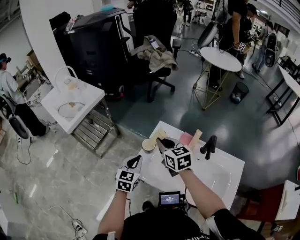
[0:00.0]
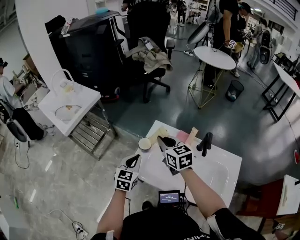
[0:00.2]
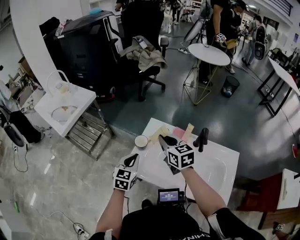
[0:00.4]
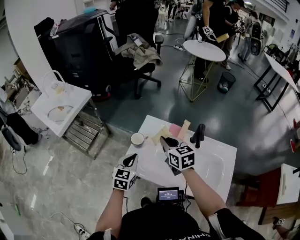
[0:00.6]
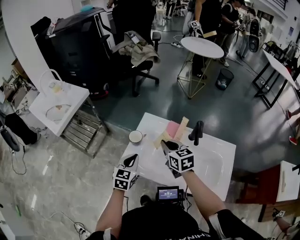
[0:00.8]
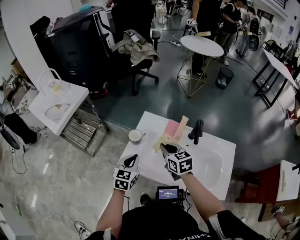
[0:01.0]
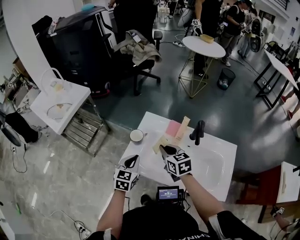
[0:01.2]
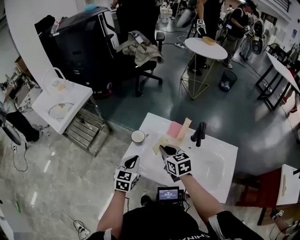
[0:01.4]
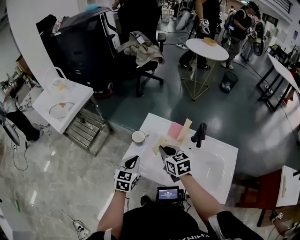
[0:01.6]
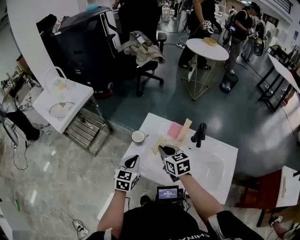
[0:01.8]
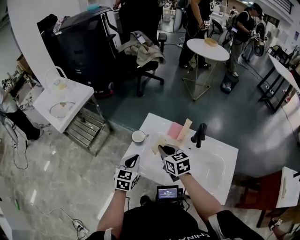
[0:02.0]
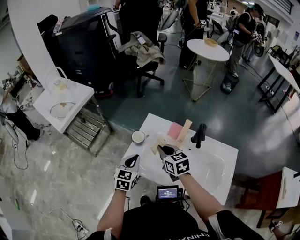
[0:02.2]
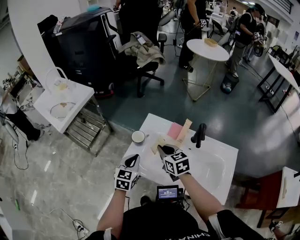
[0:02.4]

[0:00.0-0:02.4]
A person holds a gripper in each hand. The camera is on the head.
0:00.0 to 0:01.2: The left gripper moves approximately 5 cm. Meanwhile the right gripper moves backward, to the right and downward, some 10 cm.
0:01.2 to 0:02.4: The grippers stay close to where they were, moving slightly.

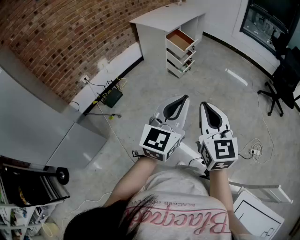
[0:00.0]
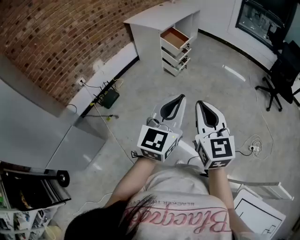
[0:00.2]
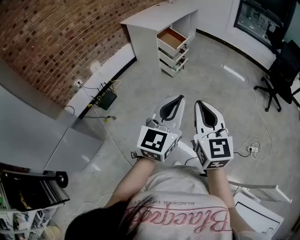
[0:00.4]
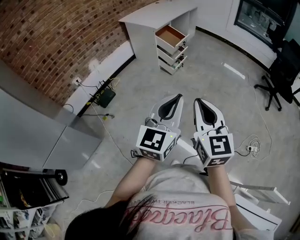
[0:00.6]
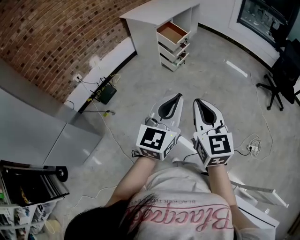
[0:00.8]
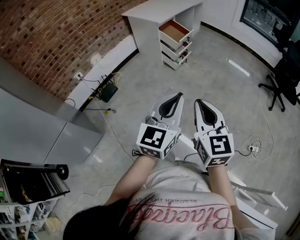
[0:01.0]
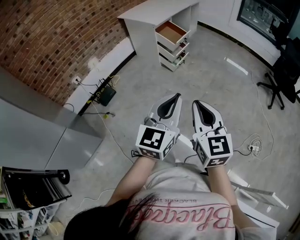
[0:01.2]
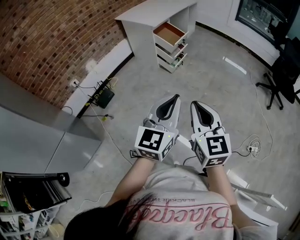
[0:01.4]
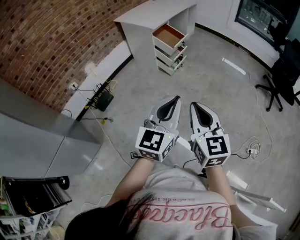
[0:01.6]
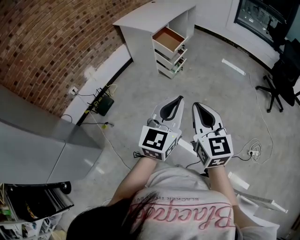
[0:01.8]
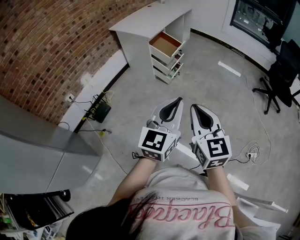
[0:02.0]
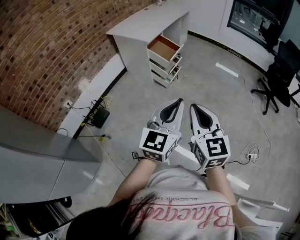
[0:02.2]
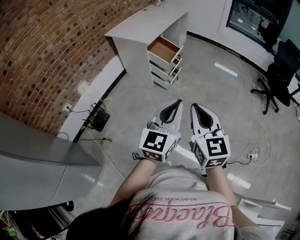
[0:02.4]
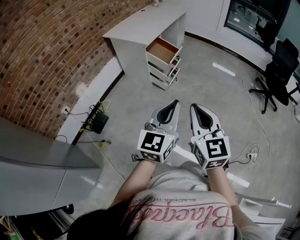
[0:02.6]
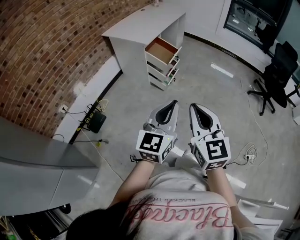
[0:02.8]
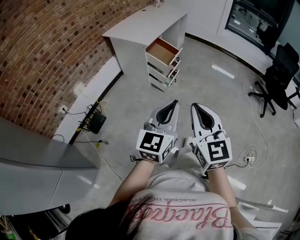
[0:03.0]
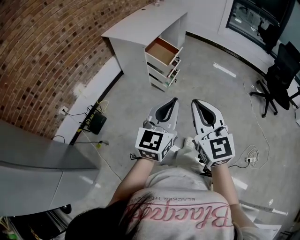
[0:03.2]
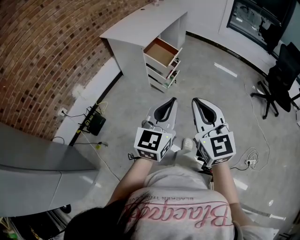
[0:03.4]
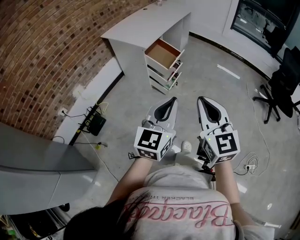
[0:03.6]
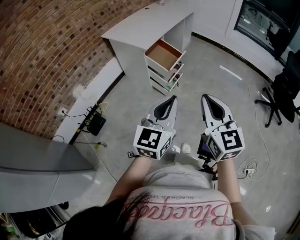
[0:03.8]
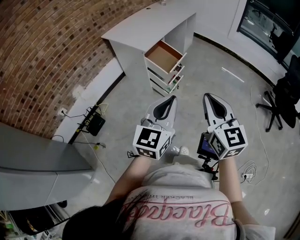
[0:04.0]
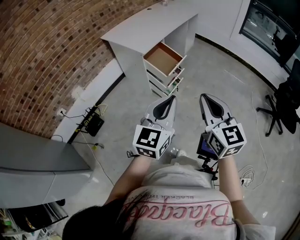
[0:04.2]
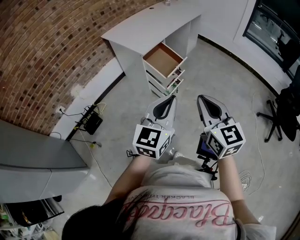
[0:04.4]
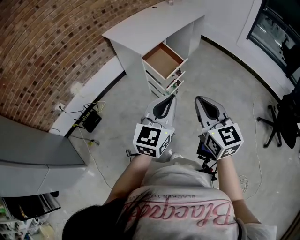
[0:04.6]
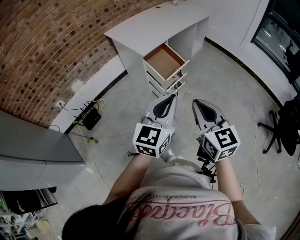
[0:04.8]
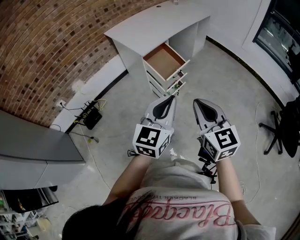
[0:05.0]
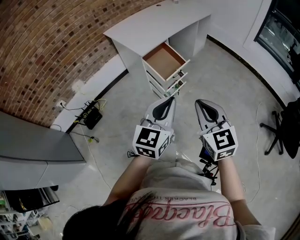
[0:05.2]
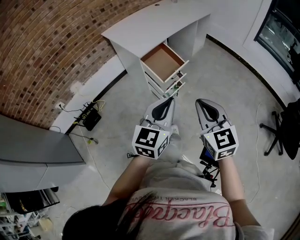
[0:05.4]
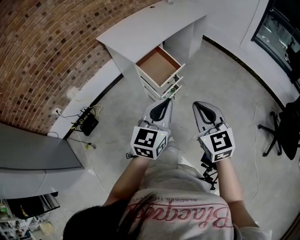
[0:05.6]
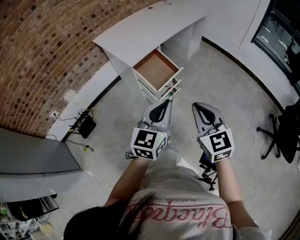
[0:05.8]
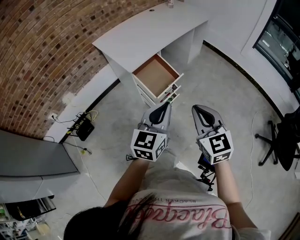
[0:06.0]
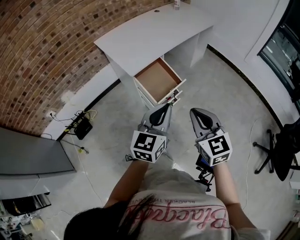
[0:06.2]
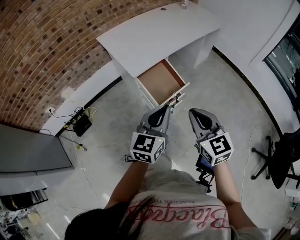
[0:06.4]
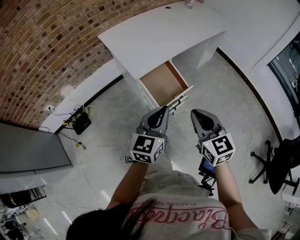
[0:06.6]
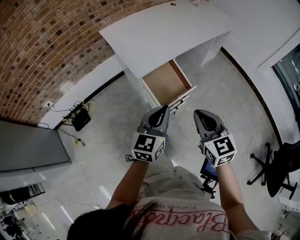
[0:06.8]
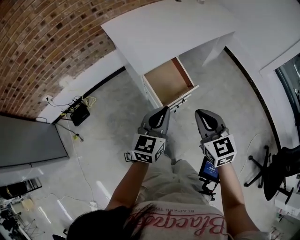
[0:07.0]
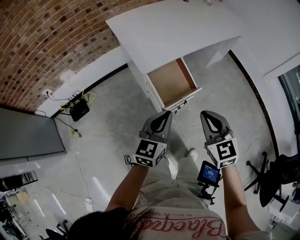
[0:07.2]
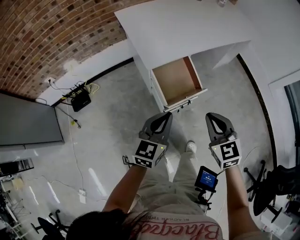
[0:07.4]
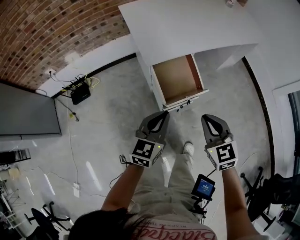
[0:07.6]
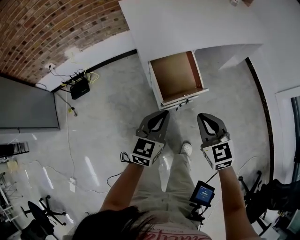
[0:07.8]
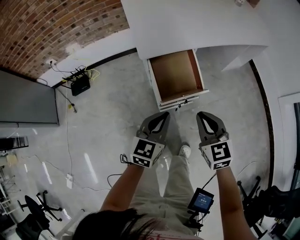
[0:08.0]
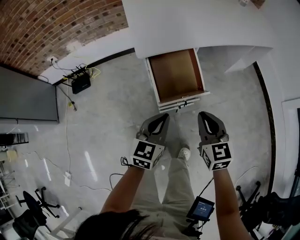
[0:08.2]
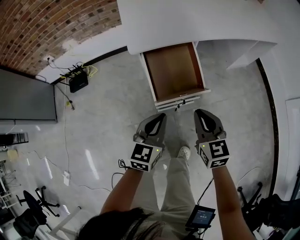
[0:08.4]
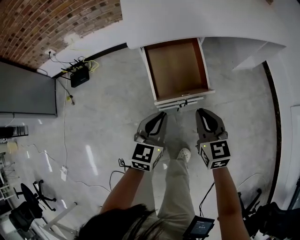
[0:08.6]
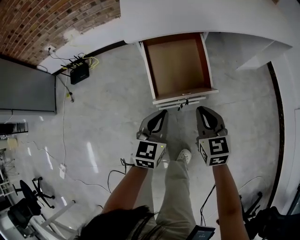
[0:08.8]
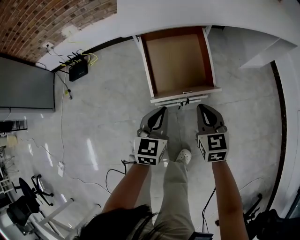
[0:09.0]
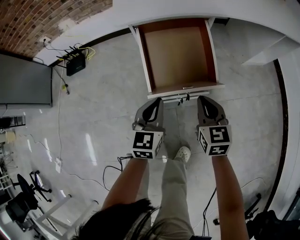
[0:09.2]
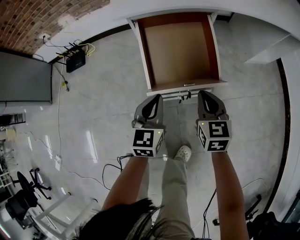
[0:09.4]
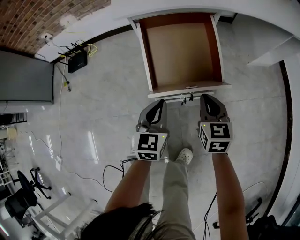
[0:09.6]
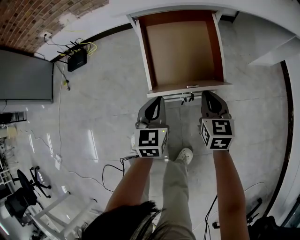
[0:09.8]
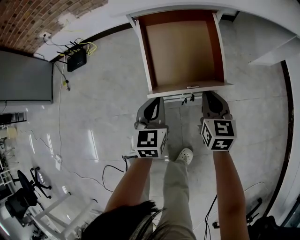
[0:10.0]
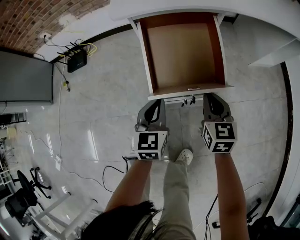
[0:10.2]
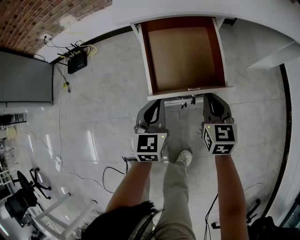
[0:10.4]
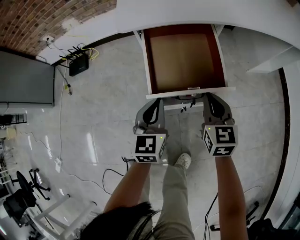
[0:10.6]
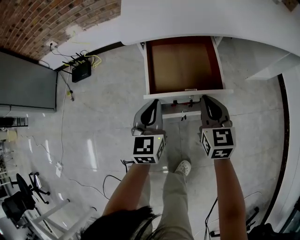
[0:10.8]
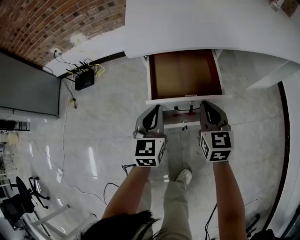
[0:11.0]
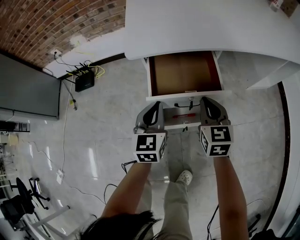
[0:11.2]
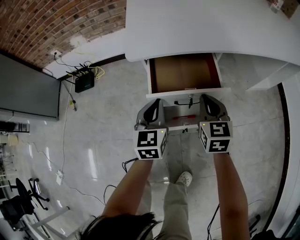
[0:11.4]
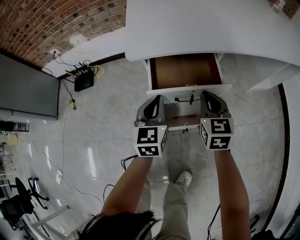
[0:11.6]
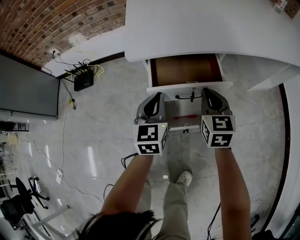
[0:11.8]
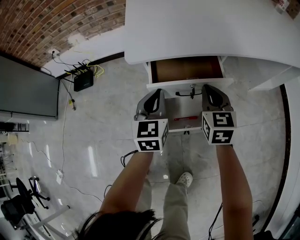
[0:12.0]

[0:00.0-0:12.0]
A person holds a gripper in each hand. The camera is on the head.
0:00.0 to 0:01.6: The two grippers go approximately 15 cm forward.
0:01.6 to 0:03.0: The two grippers go about 15 cm forward and to the left.
0:03.0 to 0:04.4: The two grippers go approximately 25 cm forward and to the right.
0:04.4 to 0:06.0: Both grippers travel together forward and to the right, roughly 25 cm.
0:06.0 to 0:07.6: The two grippers go roughly 25 cm forward and downward. The left gripper swivels some 20 degrees, while the right gripper turns by about 30 degrees.
0:07.6 to 0:09.0: The grippers both shift downward by roughly 25 cm. The left gripper swivels roughly 20 degrees.
0:09.0 to 0:10.4: The left gripper moves some 5 cm; the right gripper travels forward by roughly 5 cm.
0:10.4 to 0:12.0: The grippers both shift forward and upward by some 15 cm.

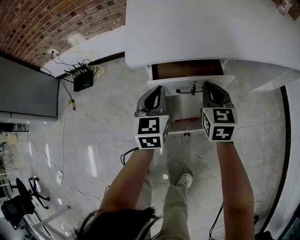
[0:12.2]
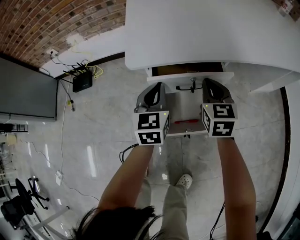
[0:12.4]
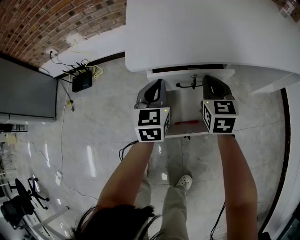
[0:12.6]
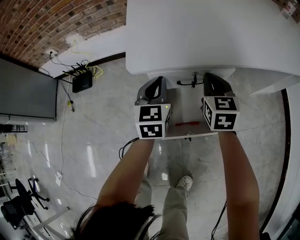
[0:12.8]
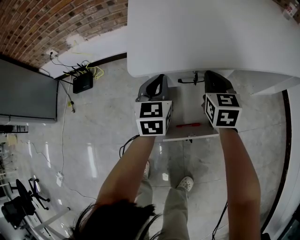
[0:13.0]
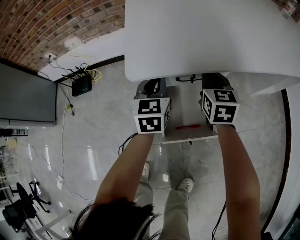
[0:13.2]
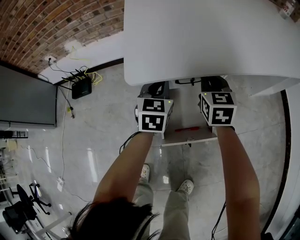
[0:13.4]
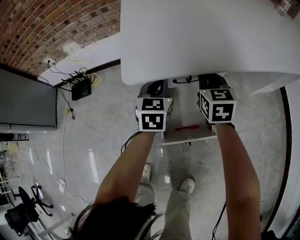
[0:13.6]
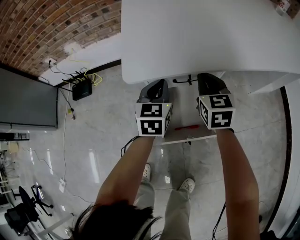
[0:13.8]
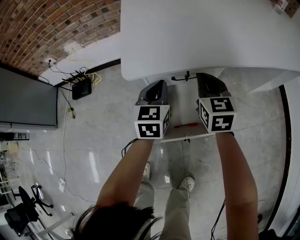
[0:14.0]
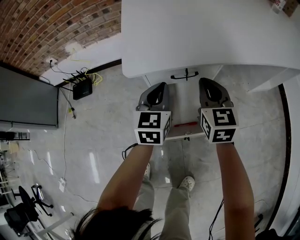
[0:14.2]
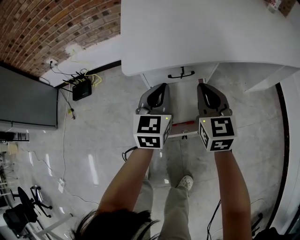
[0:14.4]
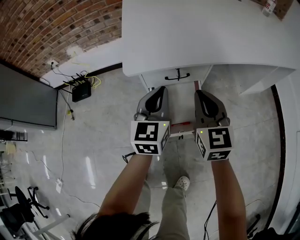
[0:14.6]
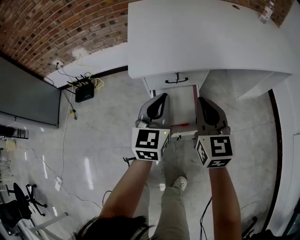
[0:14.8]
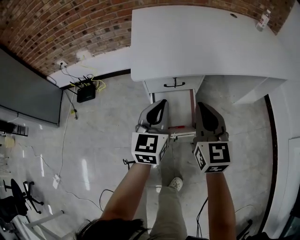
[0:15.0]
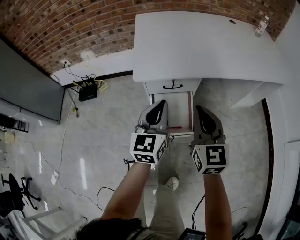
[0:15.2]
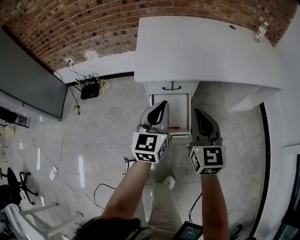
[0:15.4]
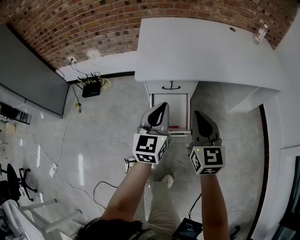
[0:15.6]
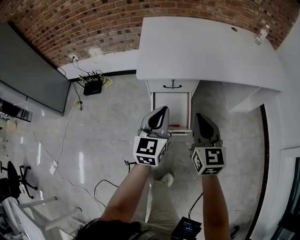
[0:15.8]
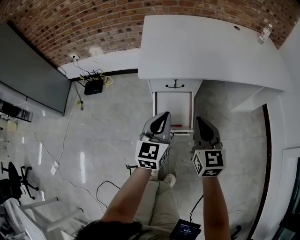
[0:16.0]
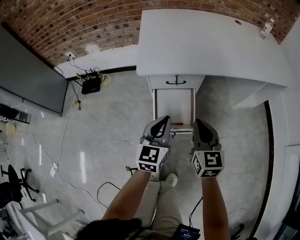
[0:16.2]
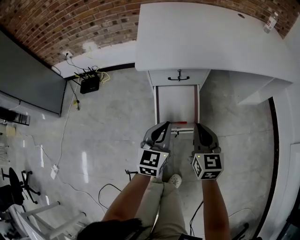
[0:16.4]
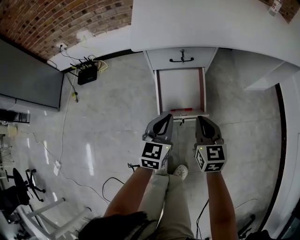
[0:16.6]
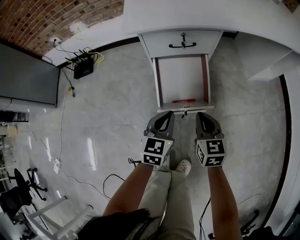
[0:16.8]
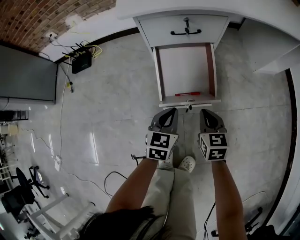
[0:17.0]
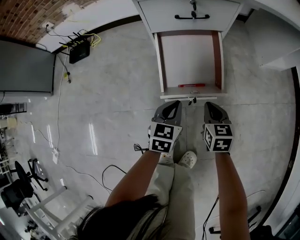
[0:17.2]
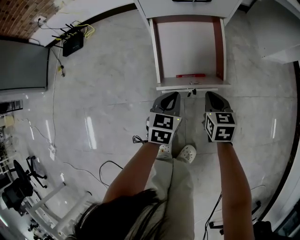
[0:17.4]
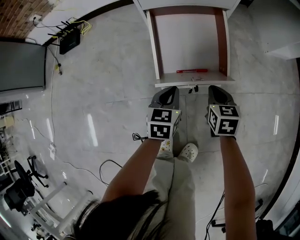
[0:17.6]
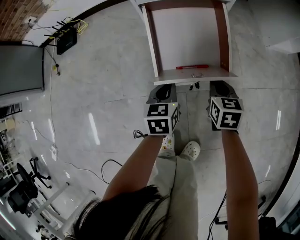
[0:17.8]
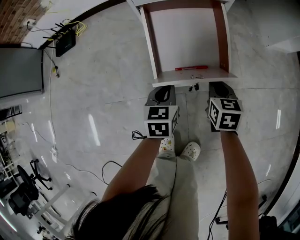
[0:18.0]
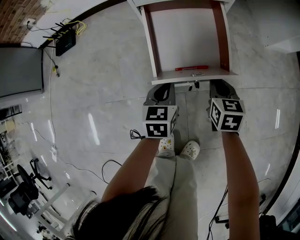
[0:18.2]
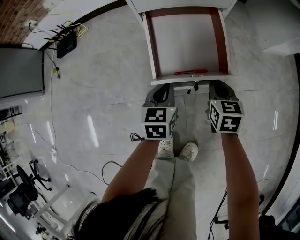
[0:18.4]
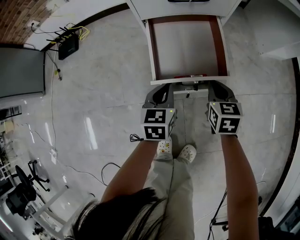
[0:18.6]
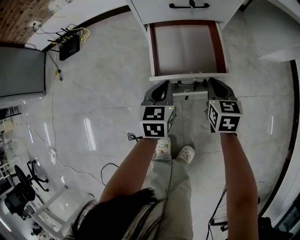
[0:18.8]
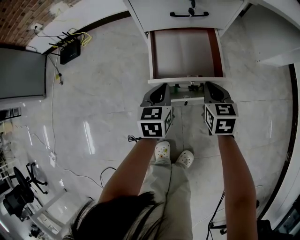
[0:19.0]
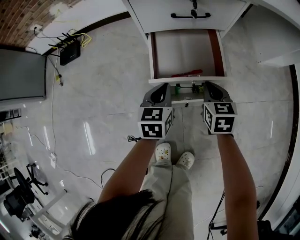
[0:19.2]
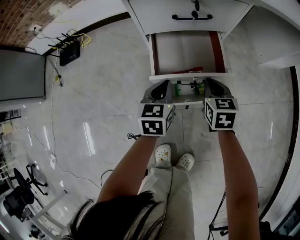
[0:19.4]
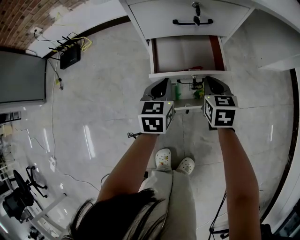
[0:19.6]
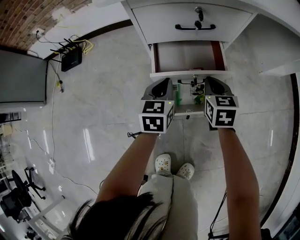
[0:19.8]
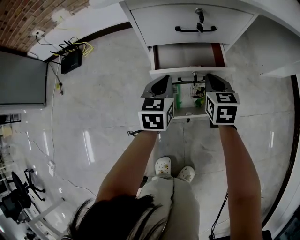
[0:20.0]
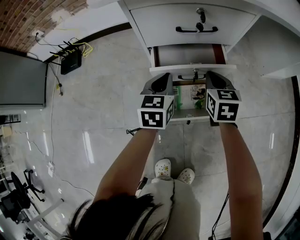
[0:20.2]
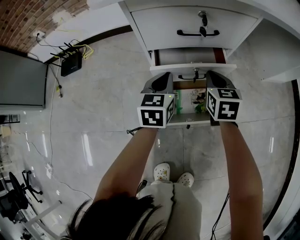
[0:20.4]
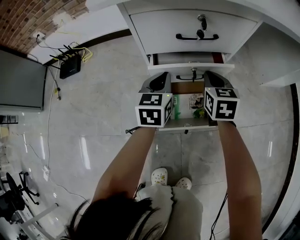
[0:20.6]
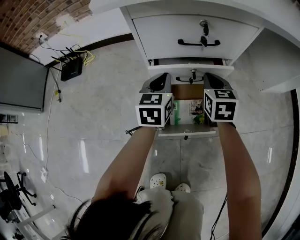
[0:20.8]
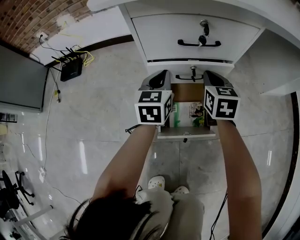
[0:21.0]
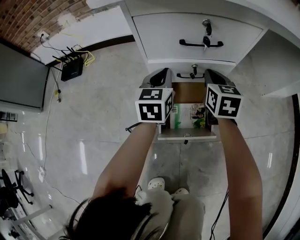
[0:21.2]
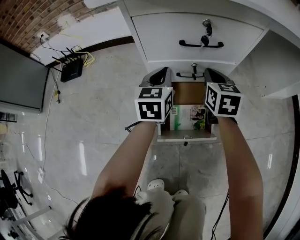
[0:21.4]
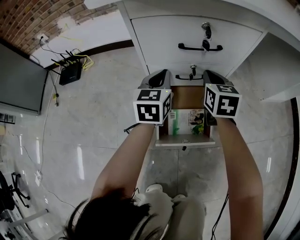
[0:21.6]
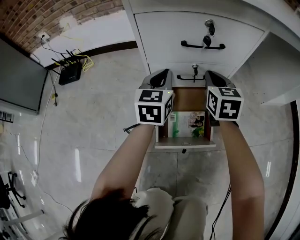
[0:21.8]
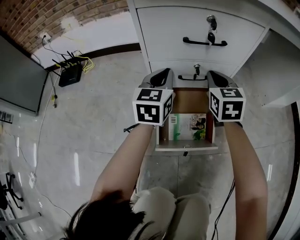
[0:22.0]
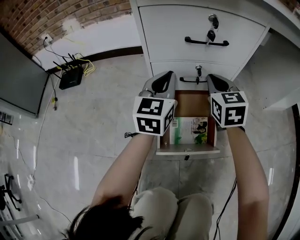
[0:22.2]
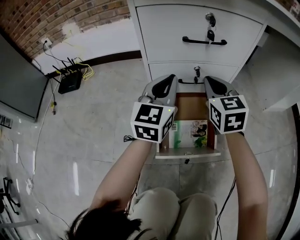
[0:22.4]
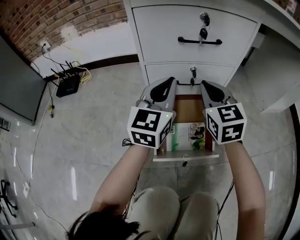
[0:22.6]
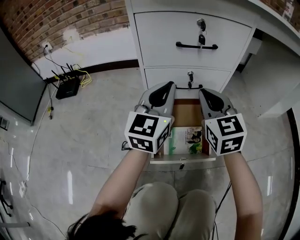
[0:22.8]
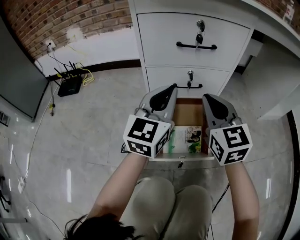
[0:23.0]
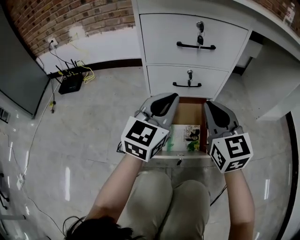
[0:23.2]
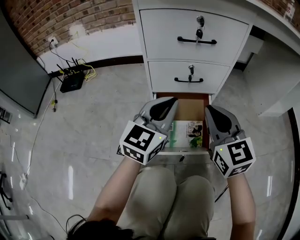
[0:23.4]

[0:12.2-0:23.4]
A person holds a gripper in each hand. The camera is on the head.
0:12.2 to 0:13.8: Both grippers move forward, approximately 5 cm.
0:13.8 to 0:15.4: The right gripper moves backward and upward, roughly 35 cm. The left gripper moves upward and backward, approximately 30 cm, and rotates roughly 20 degrees.
0:15.4 to 0:17.0: Both grippers move downward, approximately 40 cm. The left gripper rotates roughly 30 degrees; the right gripper swivels approximately 30 degrees.
0:17.0 to 0:18.6: The right gripper shifts about 10 cm downward and forward; the left gripper shifts some 10 cm downward.
0:18.6 to 0:20.2: The two grippers go some 15 cm forward.
0:20.2 to 0:21.8: Both grippers travel together forward, roughly 10 cm.
0:21.8 to 0:23.4: The two grippers go some 15 cm backward. The left gripper turns by some 20 degrees. The right gripper turns by some 30 degrees.
